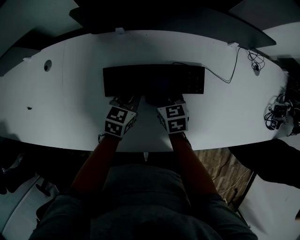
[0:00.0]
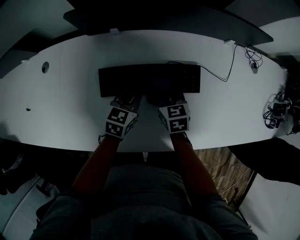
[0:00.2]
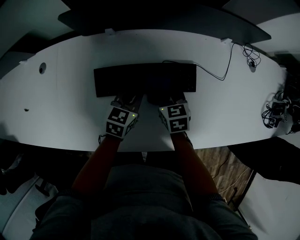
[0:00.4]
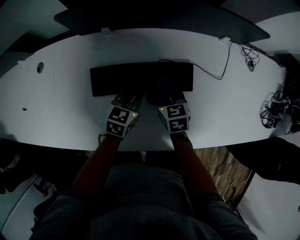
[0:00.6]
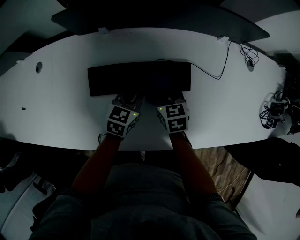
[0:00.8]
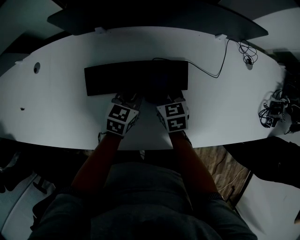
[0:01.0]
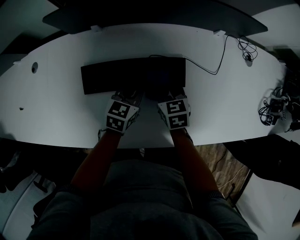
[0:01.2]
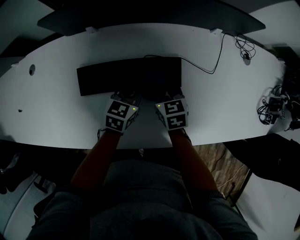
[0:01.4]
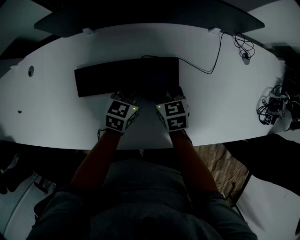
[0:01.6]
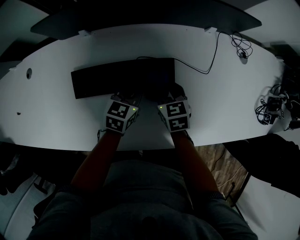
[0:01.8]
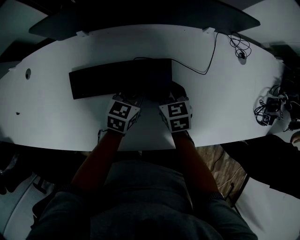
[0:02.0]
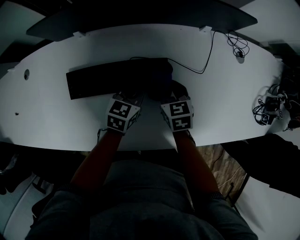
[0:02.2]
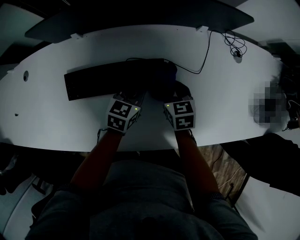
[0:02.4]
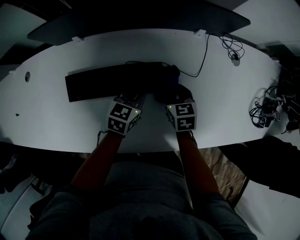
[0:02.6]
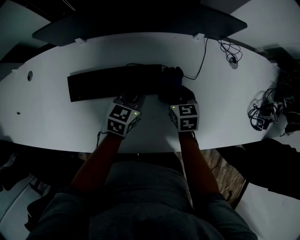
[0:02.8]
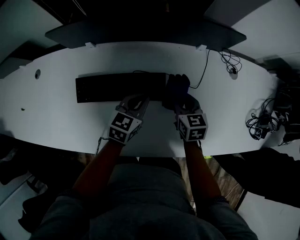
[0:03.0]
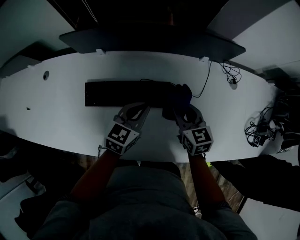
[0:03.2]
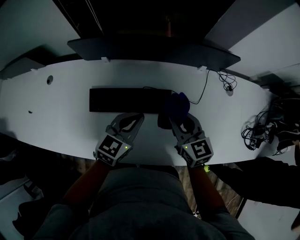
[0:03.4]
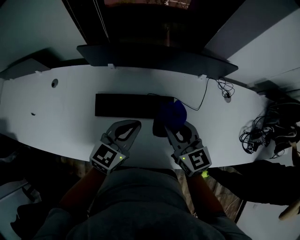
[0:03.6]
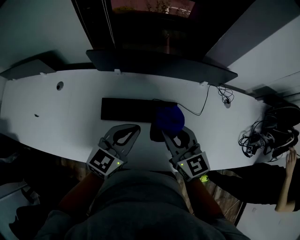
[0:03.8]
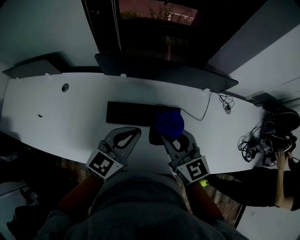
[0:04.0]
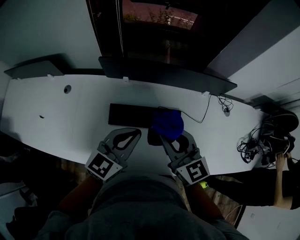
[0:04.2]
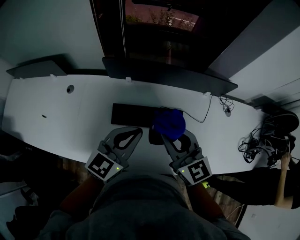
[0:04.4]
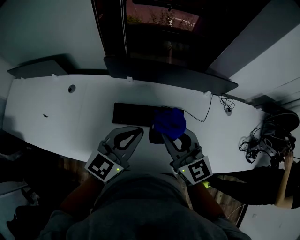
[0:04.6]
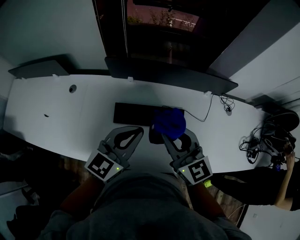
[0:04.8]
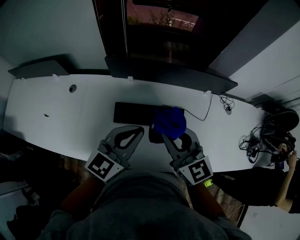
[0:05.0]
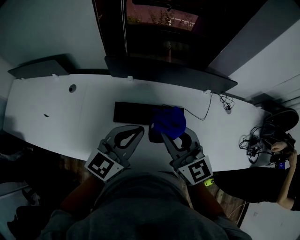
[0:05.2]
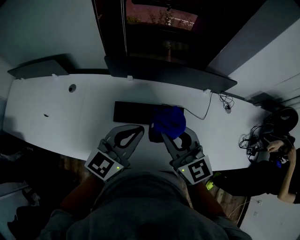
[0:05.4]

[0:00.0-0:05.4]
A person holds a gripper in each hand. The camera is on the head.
0:00.0 to 0:01.4: Both grippers move to the right, approximately 10 cm.
0:01.4 to 0:02.8: The right gripper moves to the right, about 15 cm. Meanwhile the left gripper heads to the right, covering roughly 10 cm.
0:02.8 to 0:04.0: Both grippers travel together upward and to the left, approximately 35 cm. The right gripper angles its fingers upward, by some 30 degrees; the left gripper rotates about 20 degrees.
0:04.0 to 0:05.4: Both grippers move upward, roughly 5 cm.

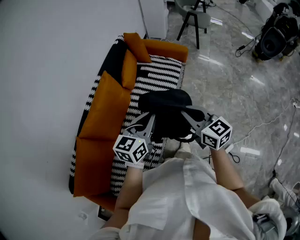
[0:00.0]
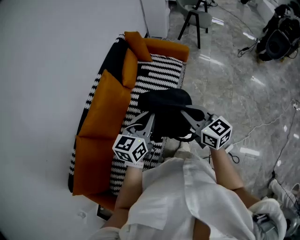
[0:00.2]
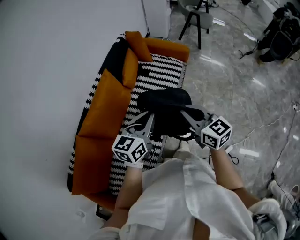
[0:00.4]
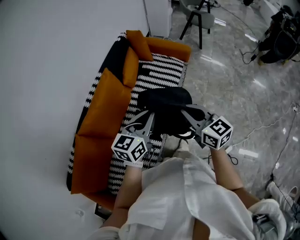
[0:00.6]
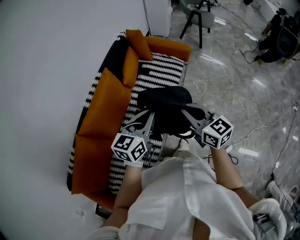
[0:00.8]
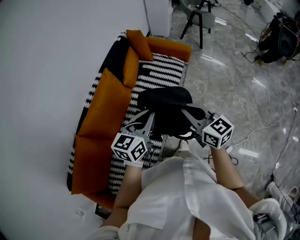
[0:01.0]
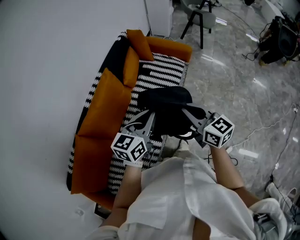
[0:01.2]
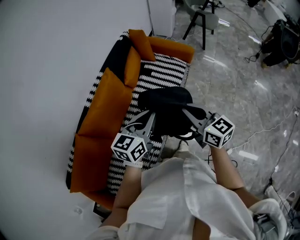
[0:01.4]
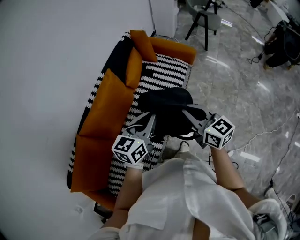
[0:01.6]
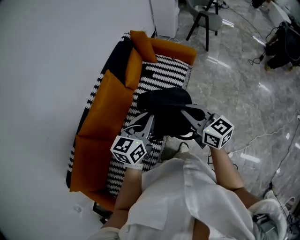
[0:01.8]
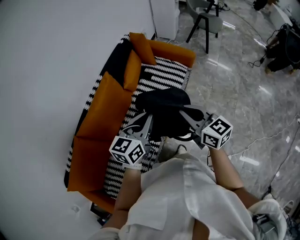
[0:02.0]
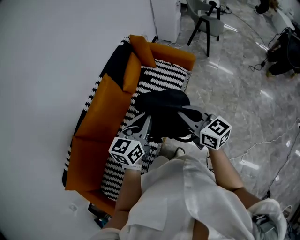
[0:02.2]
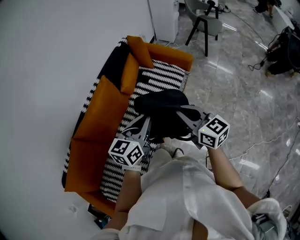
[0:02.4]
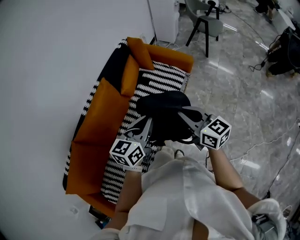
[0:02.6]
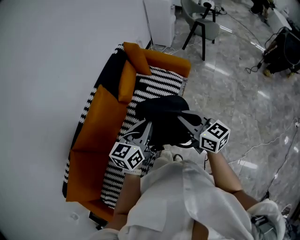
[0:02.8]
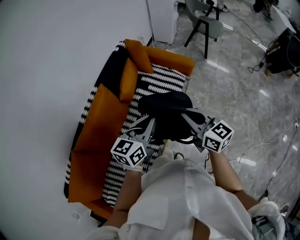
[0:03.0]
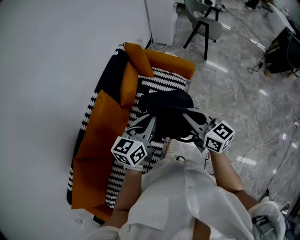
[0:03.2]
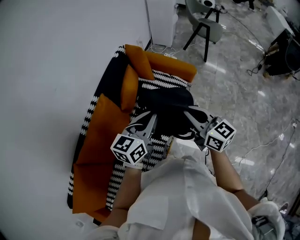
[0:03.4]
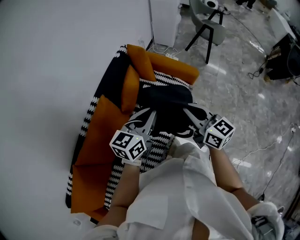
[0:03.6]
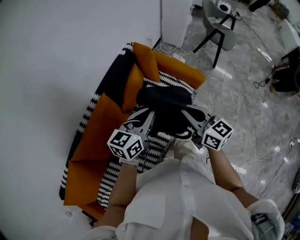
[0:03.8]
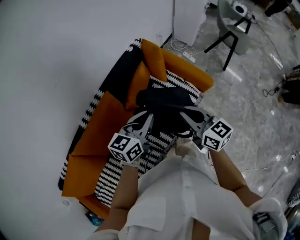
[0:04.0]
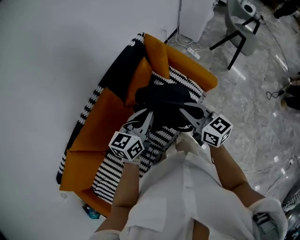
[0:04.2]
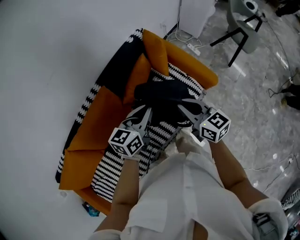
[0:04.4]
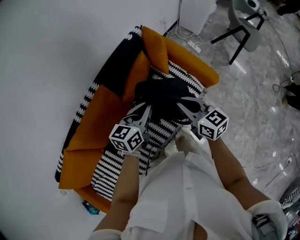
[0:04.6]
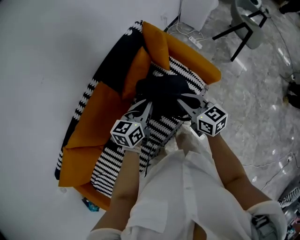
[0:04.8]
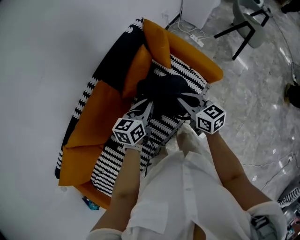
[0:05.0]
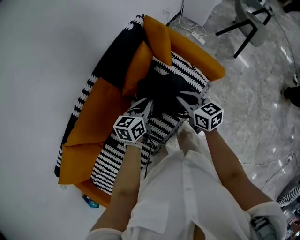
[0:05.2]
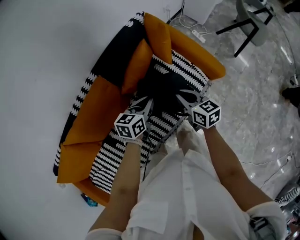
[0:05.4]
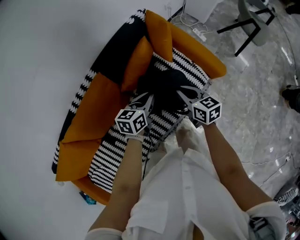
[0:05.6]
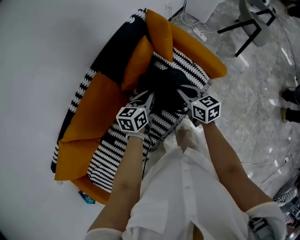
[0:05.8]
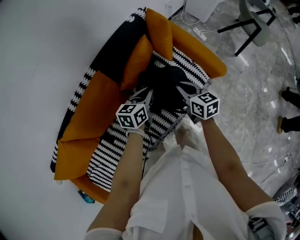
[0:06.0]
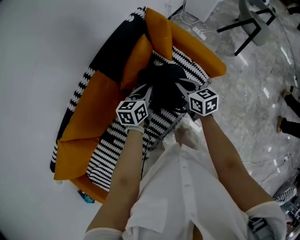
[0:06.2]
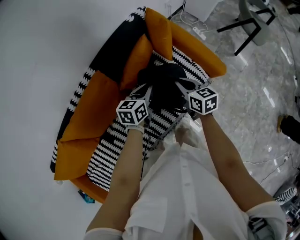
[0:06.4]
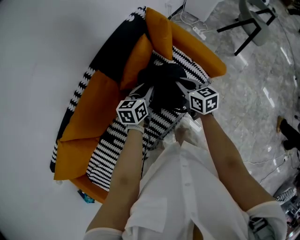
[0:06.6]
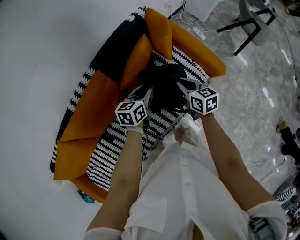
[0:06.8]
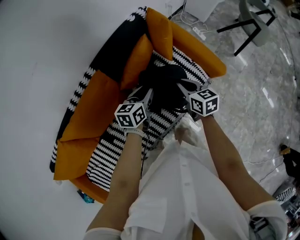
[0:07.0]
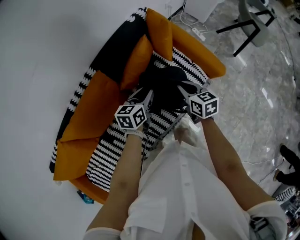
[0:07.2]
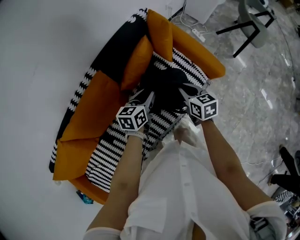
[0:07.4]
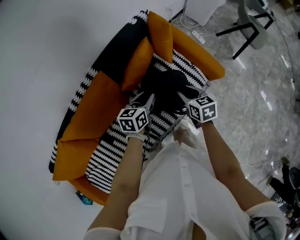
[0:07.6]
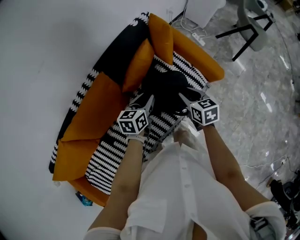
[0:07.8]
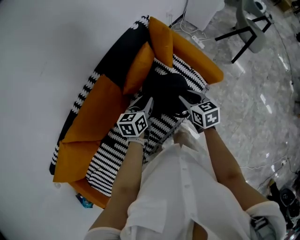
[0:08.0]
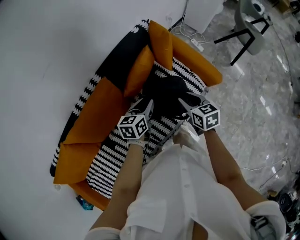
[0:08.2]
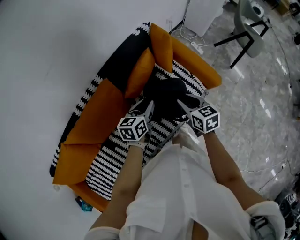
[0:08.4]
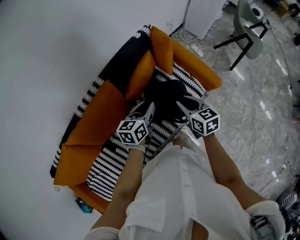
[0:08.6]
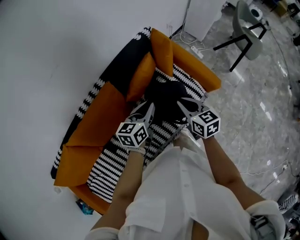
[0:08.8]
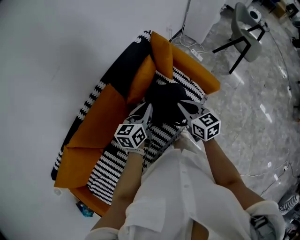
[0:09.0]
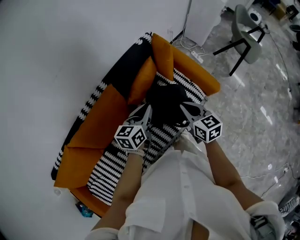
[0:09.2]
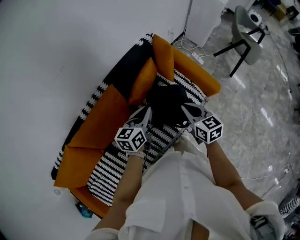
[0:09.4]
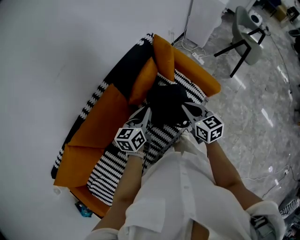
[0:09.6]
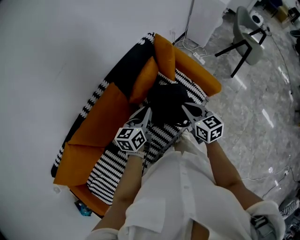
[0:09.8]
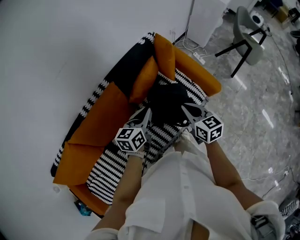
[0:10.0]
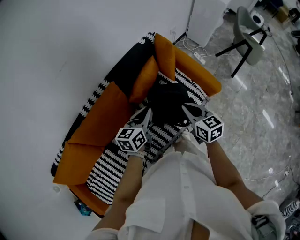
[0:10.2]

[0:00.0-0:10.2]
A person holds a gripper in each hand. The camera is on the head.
0:00.0 to 0:01.4: There are only small adjustments of the grippers.
0:01.4 to 0:03.0: Both grippers travel together forward and to the right, some 15 cm.
0:03.0 to 0:04.4: Both grippers travel together forward, some 25 cm.
0:04.4 to 0:05.8: The two grippers go approximately 15 cm downward.
0:05.8 to 0:07.2: The left gripper opens.
0:07.2 to 0:08.8: The grippers both shift upward by about 10 cm. The right gripper opens and closes again.
0:08.8 to 0:10.2: The grippers stay close to where they were, moving slightly.

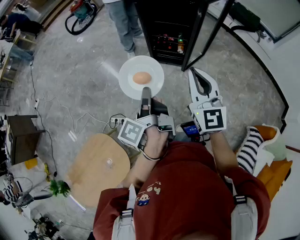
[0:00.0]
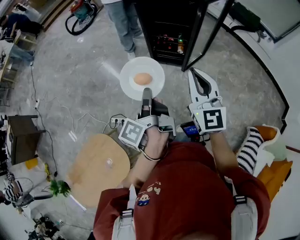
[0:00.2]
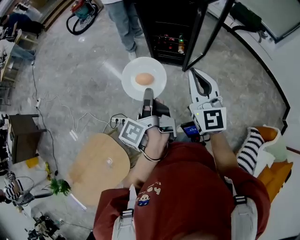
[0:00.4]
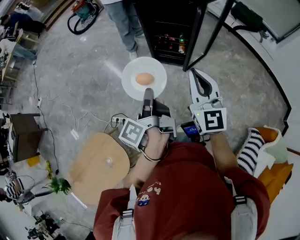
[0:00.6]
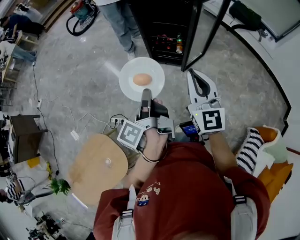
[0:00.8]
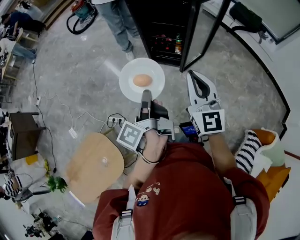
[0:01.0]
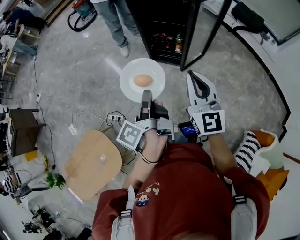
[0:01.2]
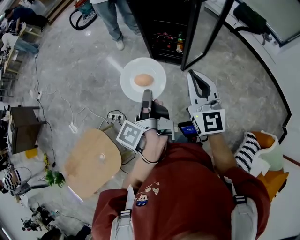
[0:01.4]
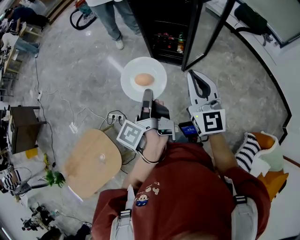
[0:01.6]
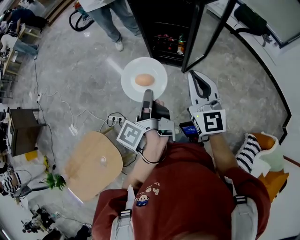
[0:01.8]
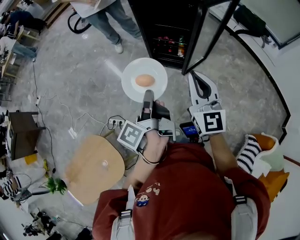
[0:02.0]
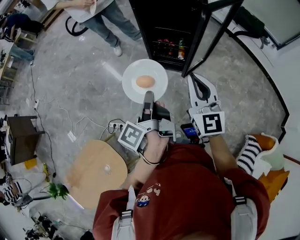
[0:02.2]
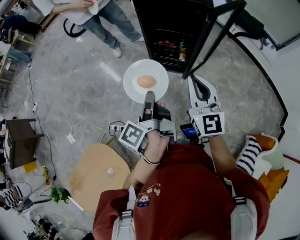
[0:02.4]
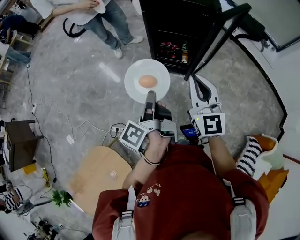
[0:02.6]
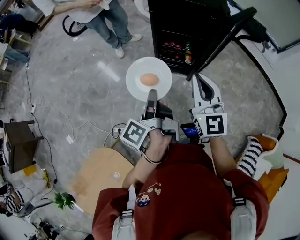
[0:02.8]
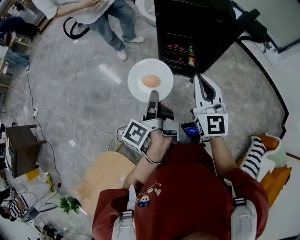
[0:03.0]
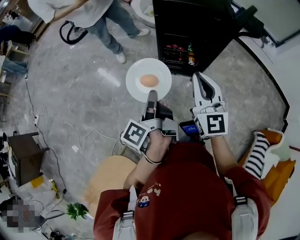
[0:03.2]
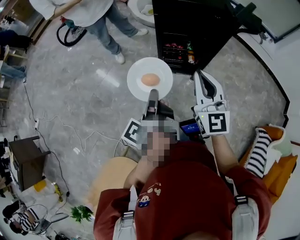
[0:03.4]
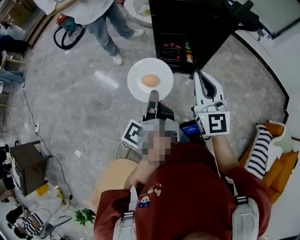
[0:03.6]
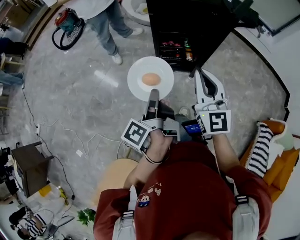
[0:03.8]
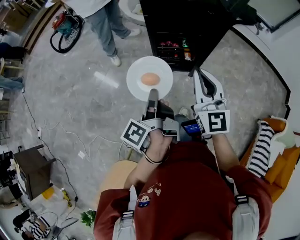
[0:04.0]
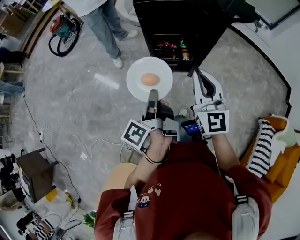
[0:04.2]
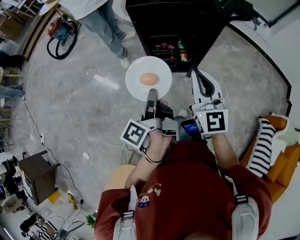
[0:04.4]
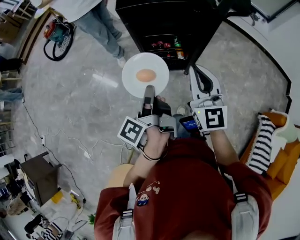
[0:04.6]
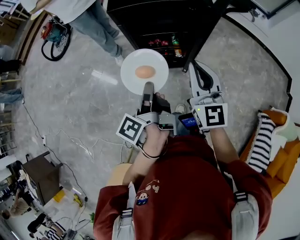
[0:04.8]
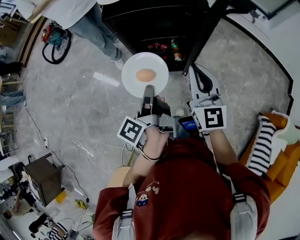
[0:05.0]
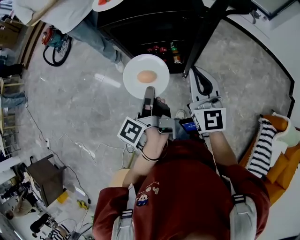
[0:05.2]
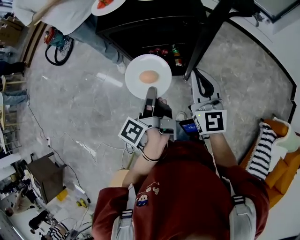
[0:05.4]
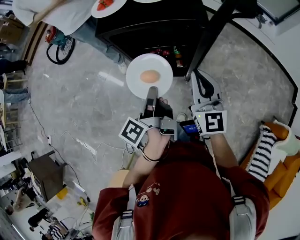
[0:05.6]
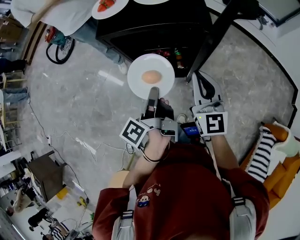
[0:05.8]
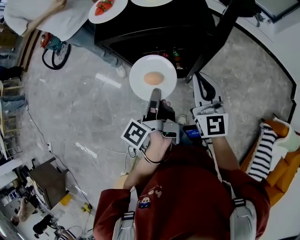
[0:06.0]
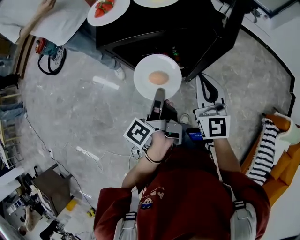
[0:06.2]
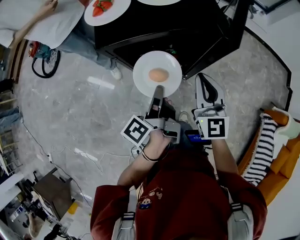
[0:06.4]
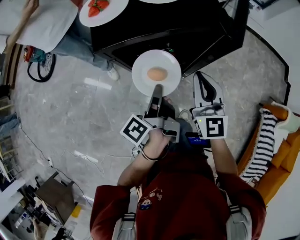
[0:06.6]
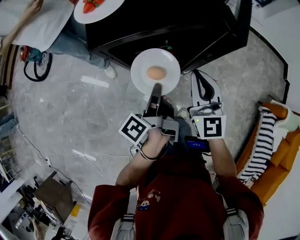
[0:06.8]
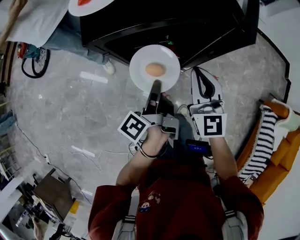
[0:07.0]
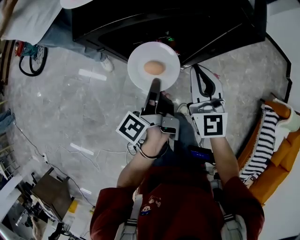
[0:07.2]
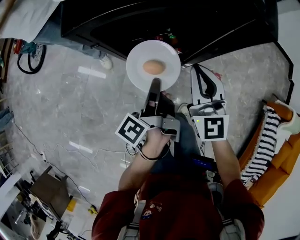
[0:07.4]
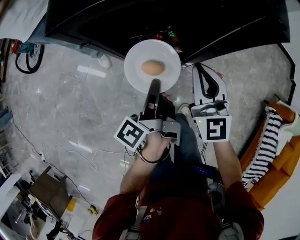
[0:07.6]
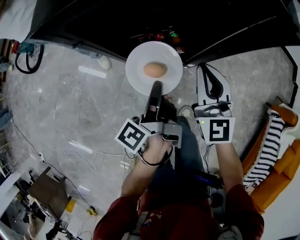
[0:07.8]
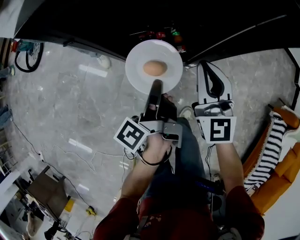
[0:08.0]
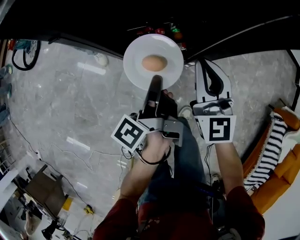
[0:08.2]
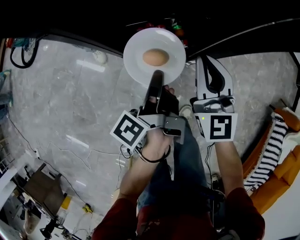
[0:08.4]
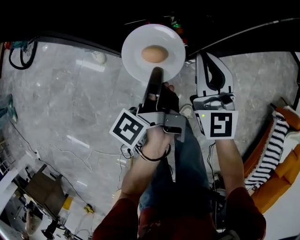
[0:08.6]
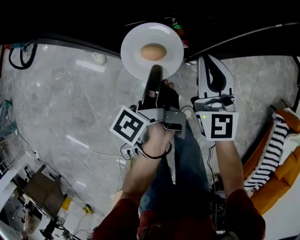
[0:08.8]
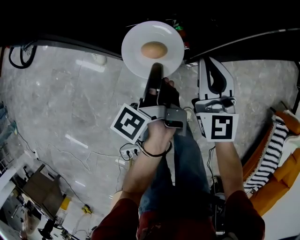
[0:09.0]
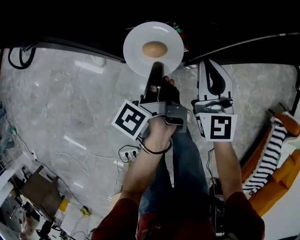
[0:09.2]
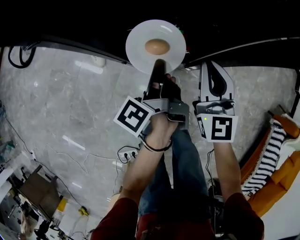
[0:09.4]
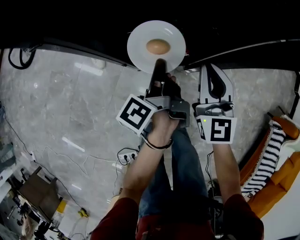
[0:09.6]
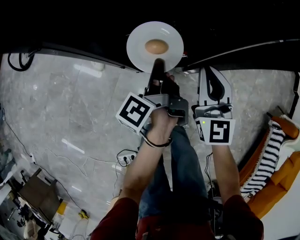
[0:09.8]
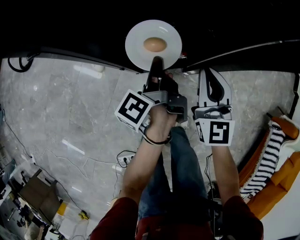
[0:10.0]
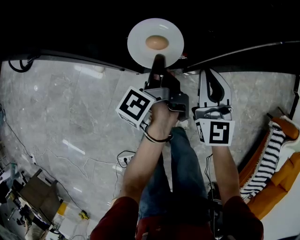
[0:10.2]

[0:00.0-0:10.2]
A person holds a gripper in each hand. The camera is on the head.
0:00.0 to 0:01.4: The two grippers go about 5 cm to the right.
0:01.4 to 0:03.0: Both grippers travel together forward and to the left, roughly 20 cm.
0:03.0 to 0:04.4: Both grippers travel together forward, roughly 5 cm.
0:04.4 to 0:05.8: Both grippers move forward and to the right, about 15 cm.
0:05.8 to 0:07.2: The right gripper shifts roughly 10 cm downward and to the left. Meanwhile the left gripper moves downward and forward, approximately 10 cm.
0:07.2 to 0:08.8: Both grippers move downward, some 15 cm.
0:08.8 to 0:10.2: The left gripper heads forward, covering roughly 5 cm.
